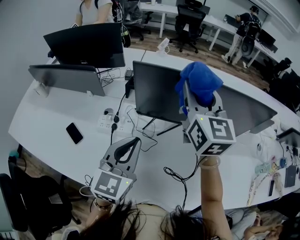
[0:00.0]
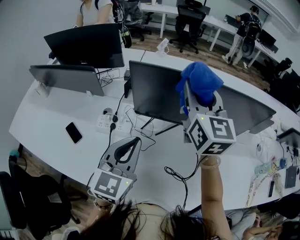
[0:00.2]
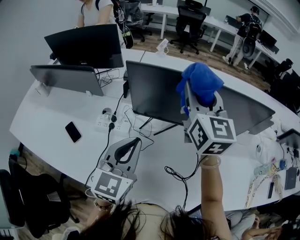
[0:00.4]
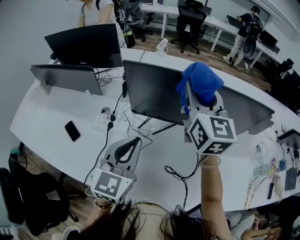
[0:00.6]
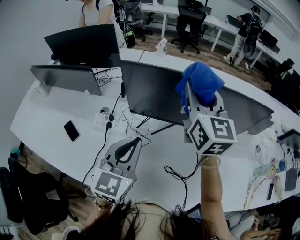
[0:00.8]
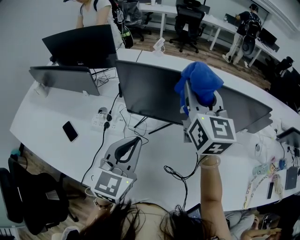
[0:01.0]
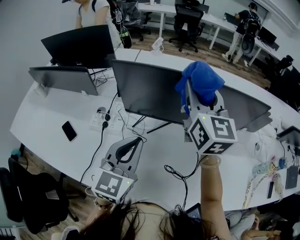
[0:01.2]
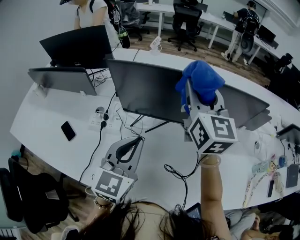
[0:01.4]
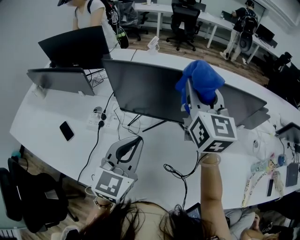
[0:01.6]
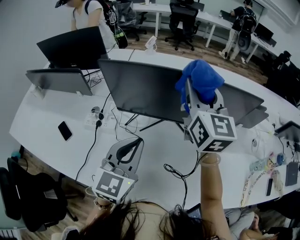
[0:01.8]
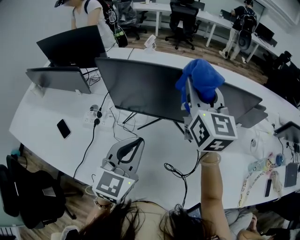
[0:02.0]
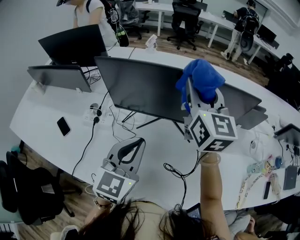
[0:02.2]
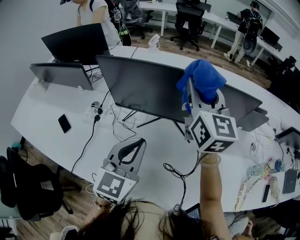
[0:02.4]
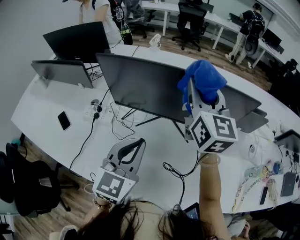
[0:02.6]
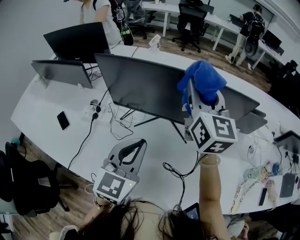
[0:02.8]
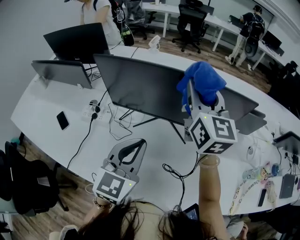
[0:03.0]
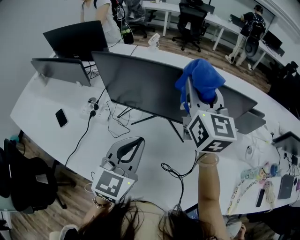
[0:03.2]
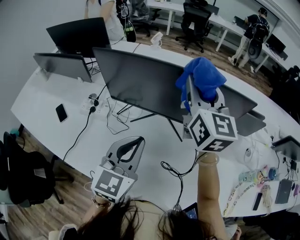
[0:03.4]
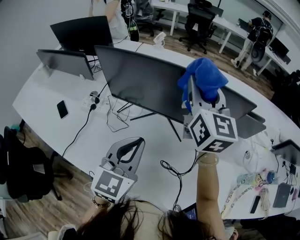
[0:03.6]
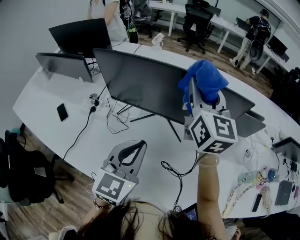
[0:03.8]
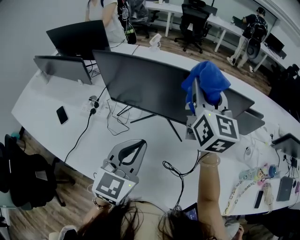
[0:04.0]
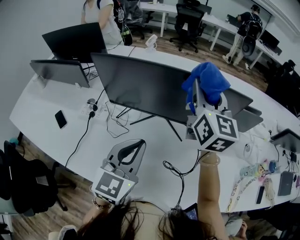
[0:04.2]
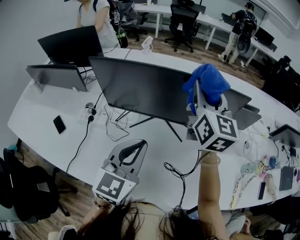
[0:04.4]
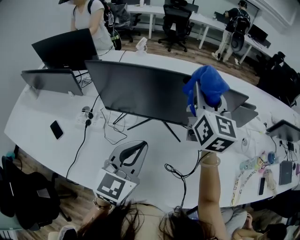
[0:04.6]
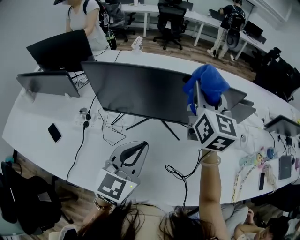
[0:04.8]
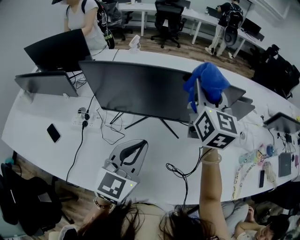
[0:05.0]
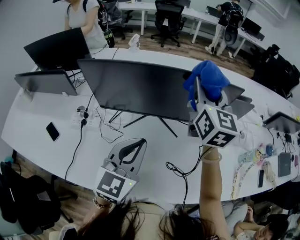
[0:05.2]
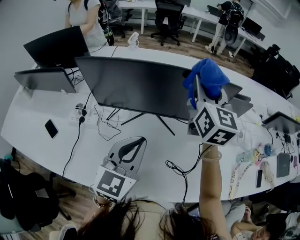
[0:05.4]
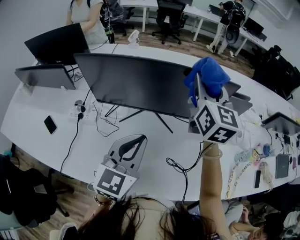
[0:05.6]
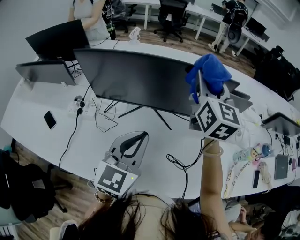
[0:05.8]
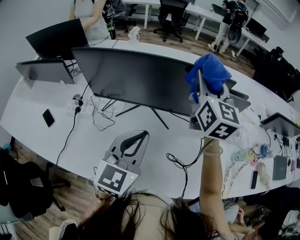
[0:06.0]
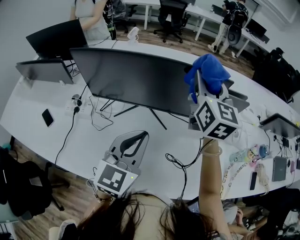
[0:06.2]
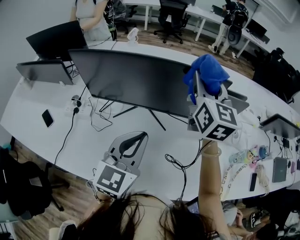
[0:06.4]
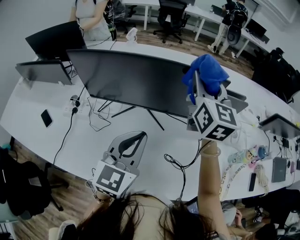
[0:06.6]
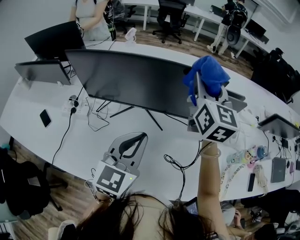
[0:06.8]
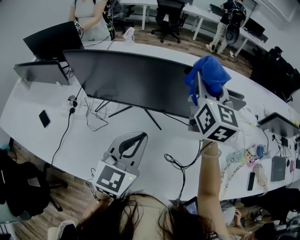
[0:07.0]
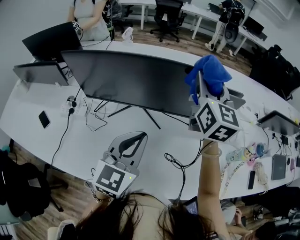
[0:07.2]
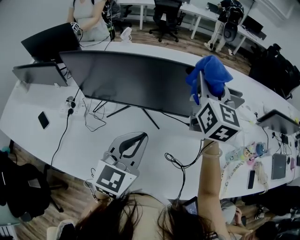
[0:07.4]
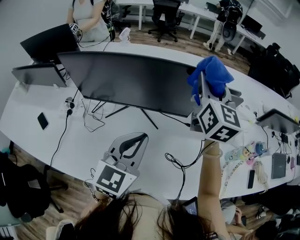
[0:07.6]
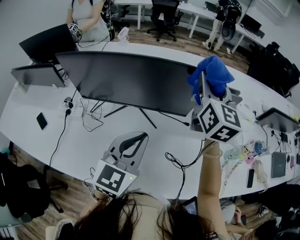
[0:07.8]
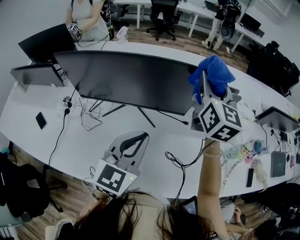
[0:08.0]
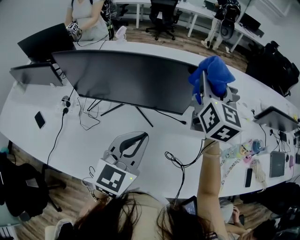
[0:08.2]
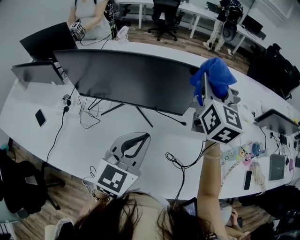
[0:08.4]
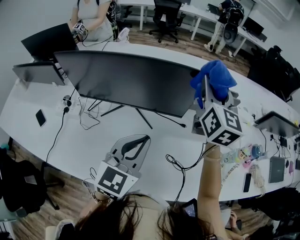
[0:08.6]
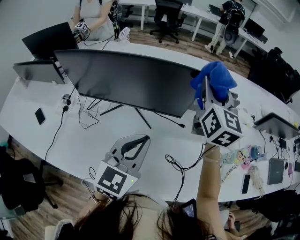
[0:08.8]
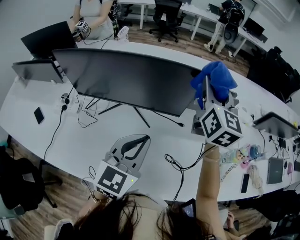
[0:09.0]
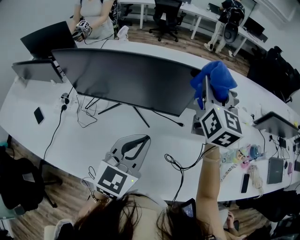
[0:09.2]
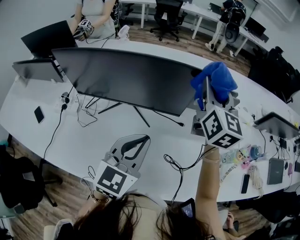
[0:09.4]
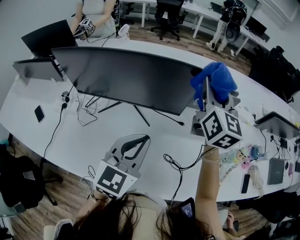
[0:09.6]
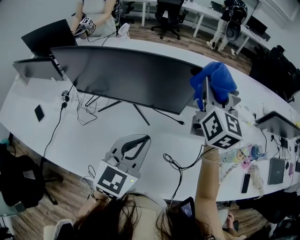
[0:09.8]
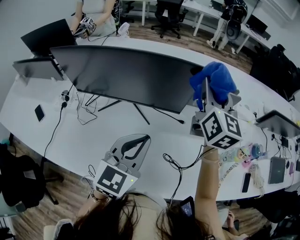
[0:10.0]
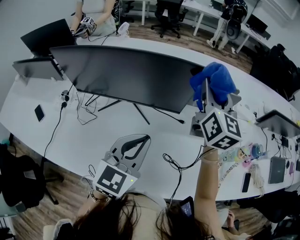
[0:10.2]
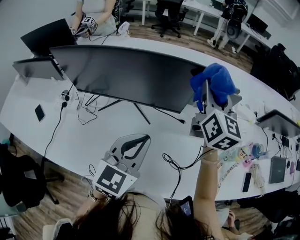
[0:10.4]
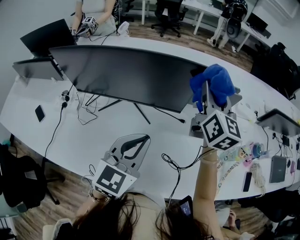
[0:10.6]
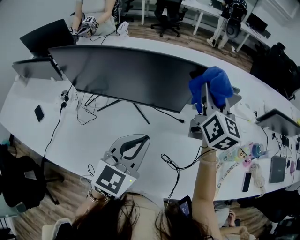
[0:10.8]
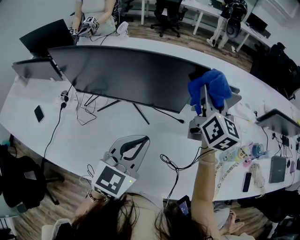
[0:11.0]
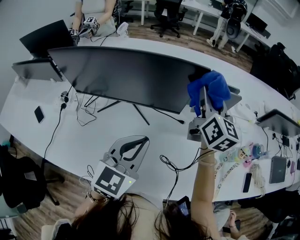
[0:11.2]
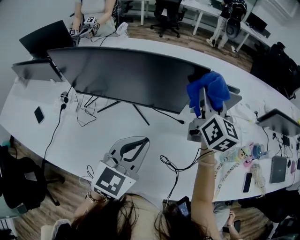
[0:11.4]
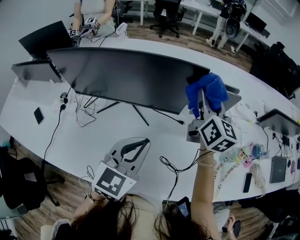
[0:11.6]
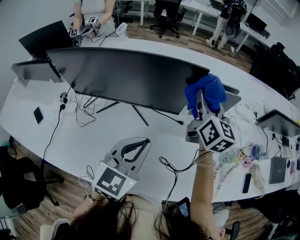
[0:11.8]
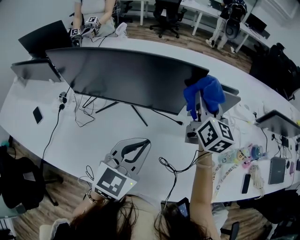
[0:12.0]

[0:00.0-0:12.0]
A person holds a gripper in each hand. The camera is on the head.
0:00.0 to 0:01.6: Both grippers move to the right, roughly 10 cm.
0:01.6 to 0:03.0: Both grippers travel together to the right, about 5 cm.
0:03.0 to 0:04.4: There are only small adjustments of the grippers.
0:04.4 to 0:06.0: Both grippers move to the right, some 5 cm.
0:06.0 to 0:07.6: The two grippers go about 5 cm to the right.
0:07.6 to 0:09.0: The grippers both shift to the right by approximately 5 cm.
0:09.0 to 0:10.4: The grippers stay close to where they were, moving slightly.
0:10.4 to 0:12.0: The right gripper goes roughly 5 cm downward.

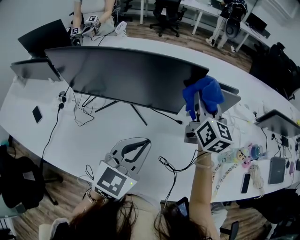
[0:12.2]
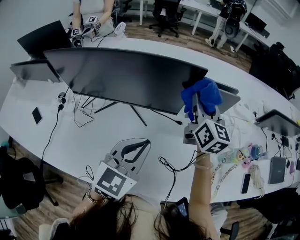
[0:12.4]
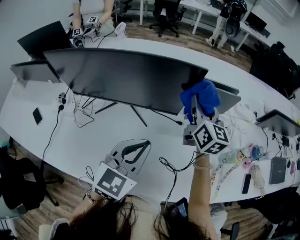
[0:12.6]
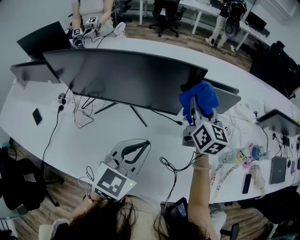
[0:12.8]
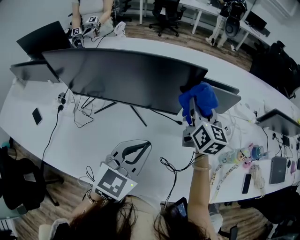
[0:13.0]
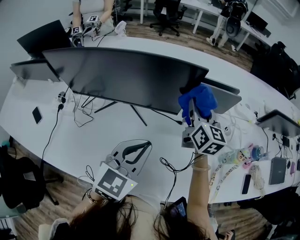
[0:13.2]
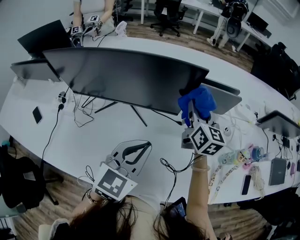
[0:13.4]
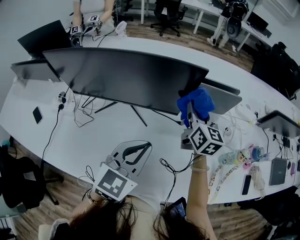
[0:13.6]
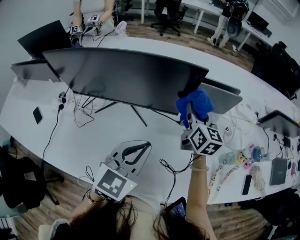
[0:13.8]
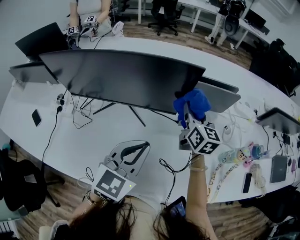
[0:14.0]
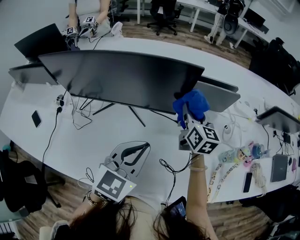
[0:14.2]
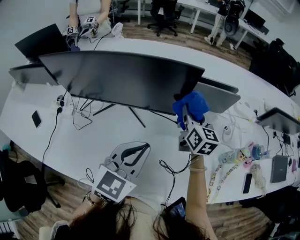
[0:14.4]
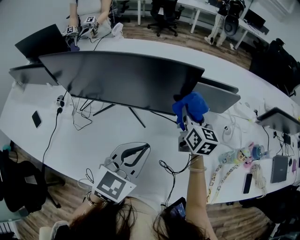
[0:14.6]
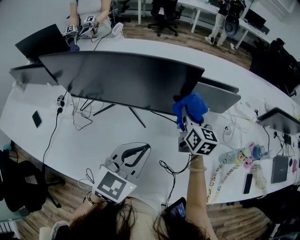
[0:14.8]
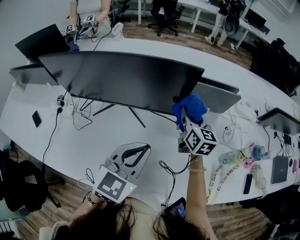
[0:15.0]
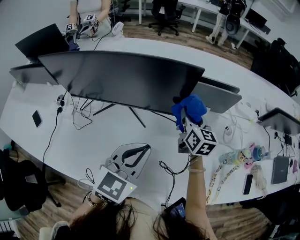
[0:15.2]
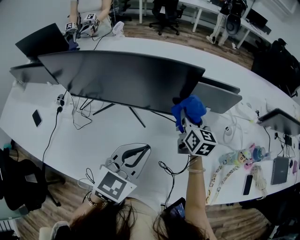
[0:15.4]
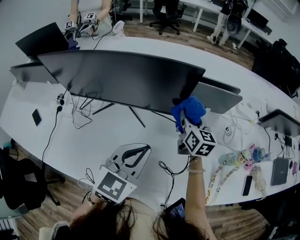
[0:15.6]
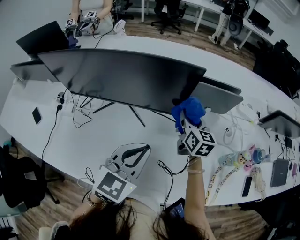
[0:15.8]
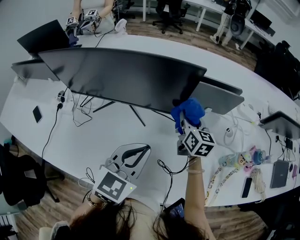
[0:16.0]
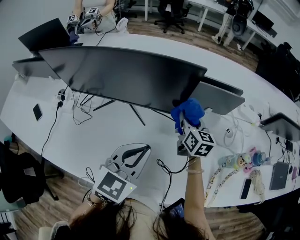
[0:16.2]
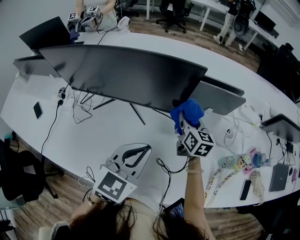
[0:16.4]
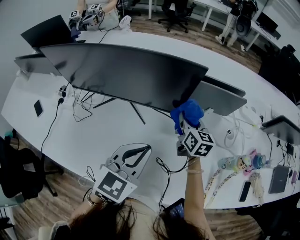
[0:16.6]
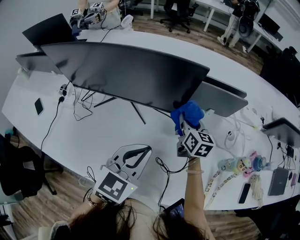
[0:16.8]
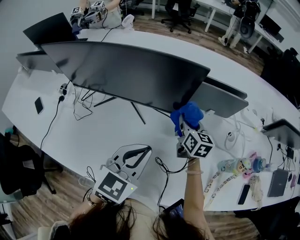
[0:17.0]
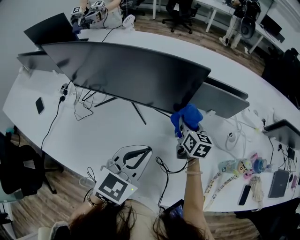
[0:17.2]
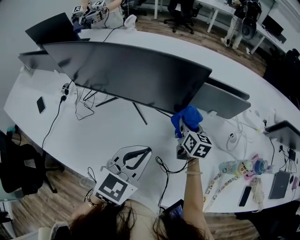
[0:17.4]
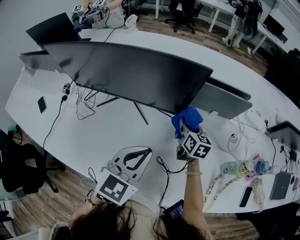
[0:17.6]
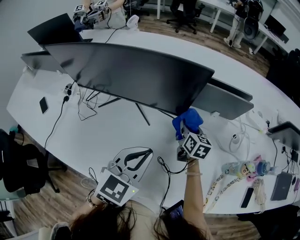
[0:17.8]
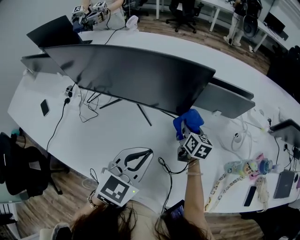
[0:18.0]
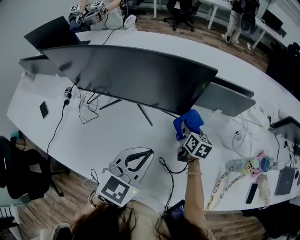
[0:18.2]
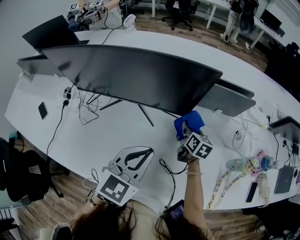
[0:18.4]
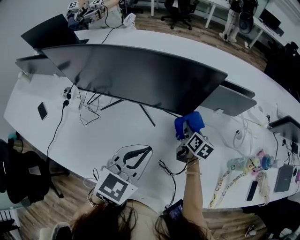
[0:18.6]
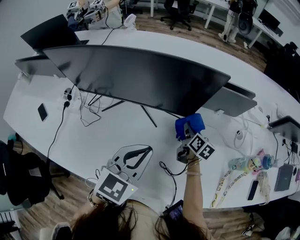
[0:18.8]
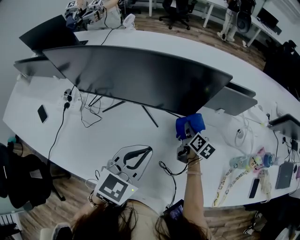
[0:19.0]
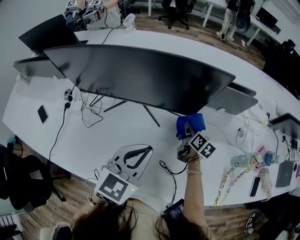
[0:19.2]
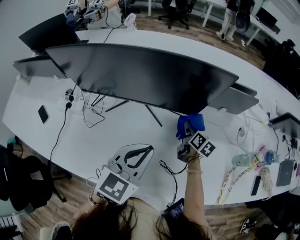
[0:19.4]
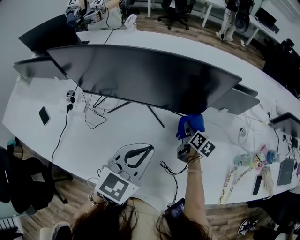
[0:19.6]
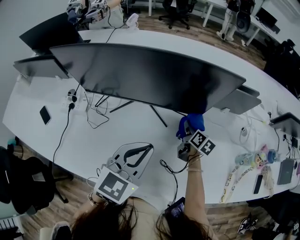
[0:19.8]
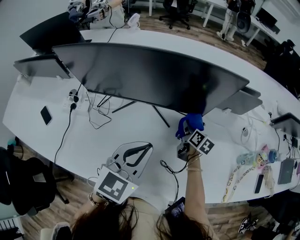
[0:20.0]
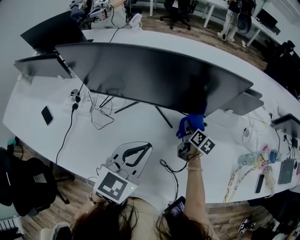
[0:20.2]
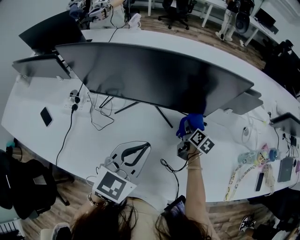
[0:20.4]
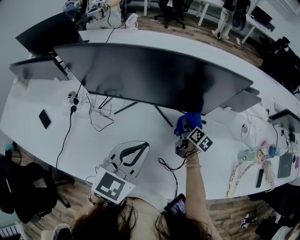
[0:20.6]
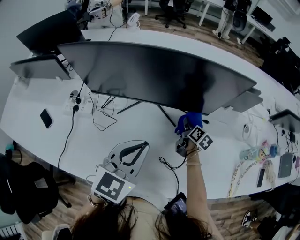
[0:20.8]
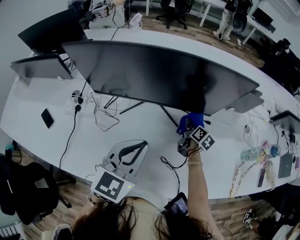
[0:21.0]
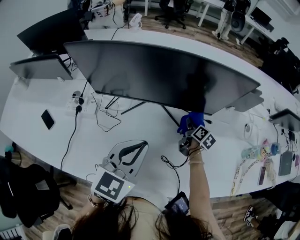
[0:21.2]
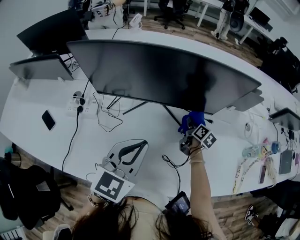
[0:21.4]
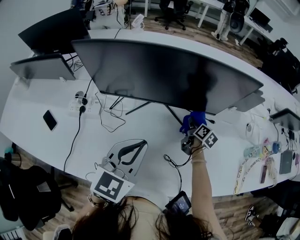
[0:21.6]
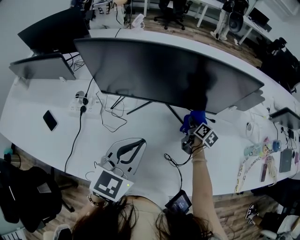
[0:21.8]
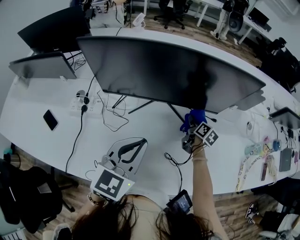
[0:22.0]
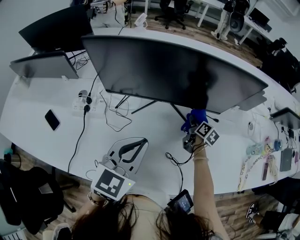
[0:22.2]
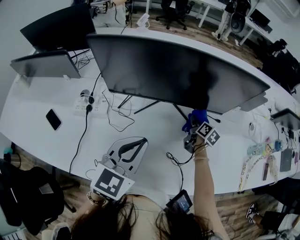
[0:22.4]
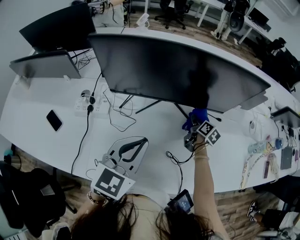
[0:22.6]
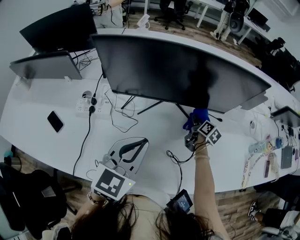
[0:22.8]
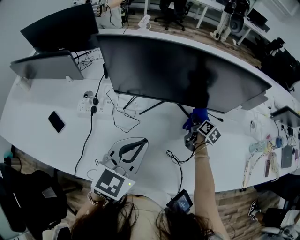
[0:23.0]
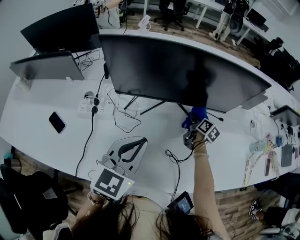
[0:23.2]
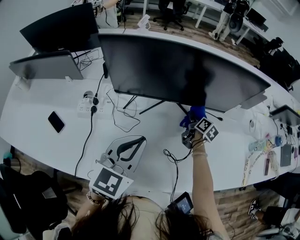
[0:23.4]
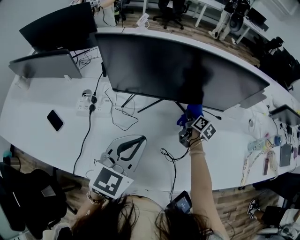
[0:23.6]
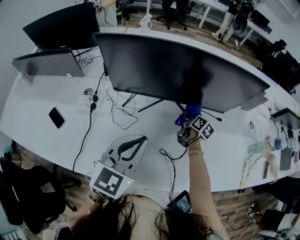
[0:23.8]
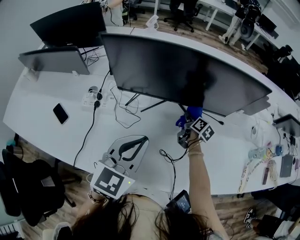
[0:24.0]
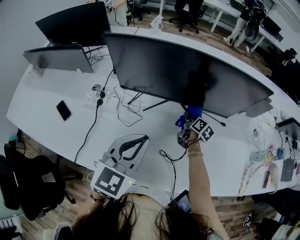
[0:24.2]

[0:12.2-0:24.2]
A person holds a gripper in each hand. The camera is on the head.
0:12.2 to 0:13.8: The right gripper shifts some 10 cm downward.
0:13.8 to 0:15.2: The grippers stay close to where they were, moving slightly.
0:15.2 to 0:16.6: The right gripper is displaced downward by about 5 cm.
0:16.6 to 0:18.2: The right gripper shifts approximately 10 cm downward.
0:18.2 to 0:19.8: The right gripper travels to the left by about 5 cm. The left gripper travels to the left by some 10 cm.
0:19.8 to 0:21.2: The left gripper is displaced to the left by roughly 10 cm; the right gripper is displaced to the left by approximately 5 cm.
0:21.2 to 0:22.6: The right gripper goes about 5 cm to the left; the left gripper shifts about 10 cm to the left.
0:22.6 to 0:24.2: The right gripper travels to the left by roughly 5 cm.
